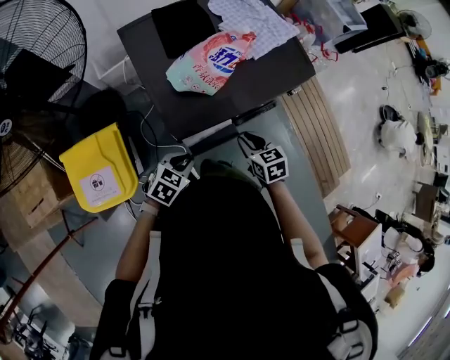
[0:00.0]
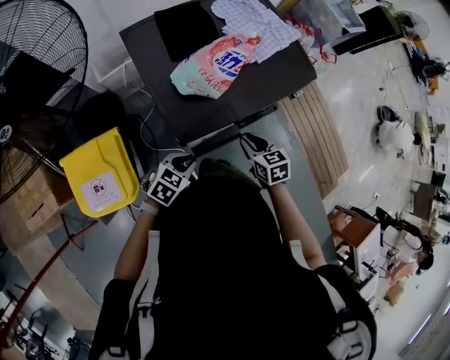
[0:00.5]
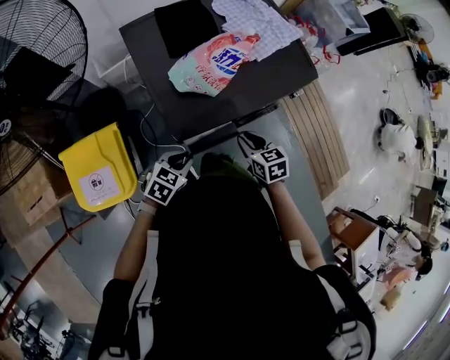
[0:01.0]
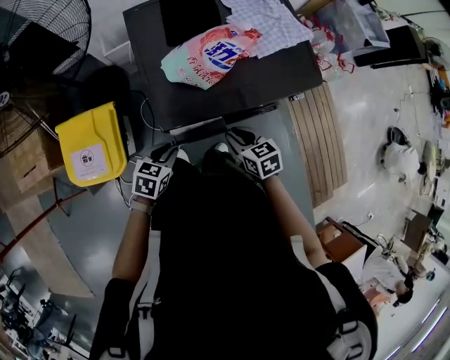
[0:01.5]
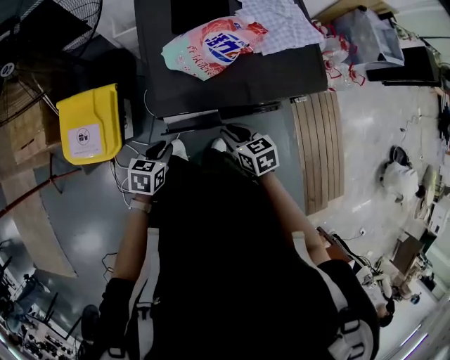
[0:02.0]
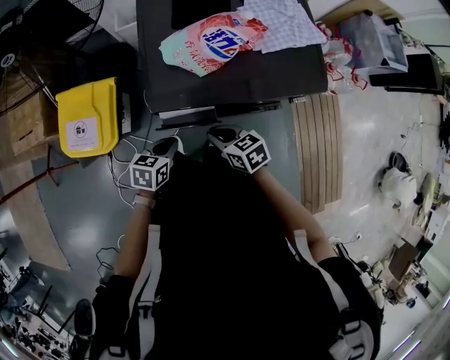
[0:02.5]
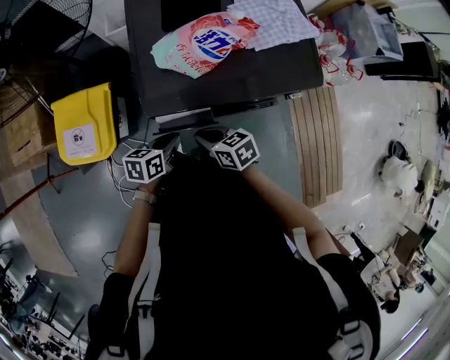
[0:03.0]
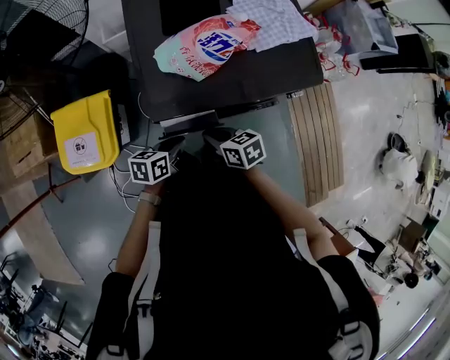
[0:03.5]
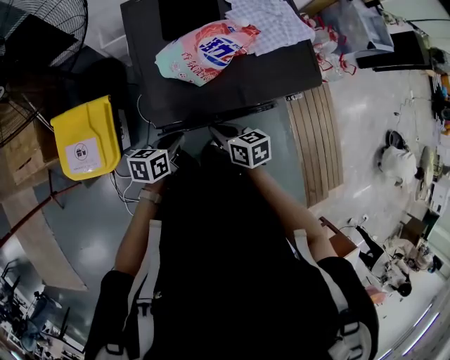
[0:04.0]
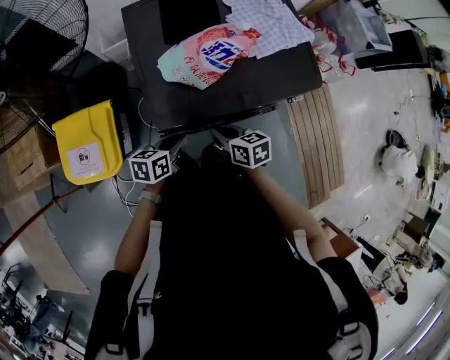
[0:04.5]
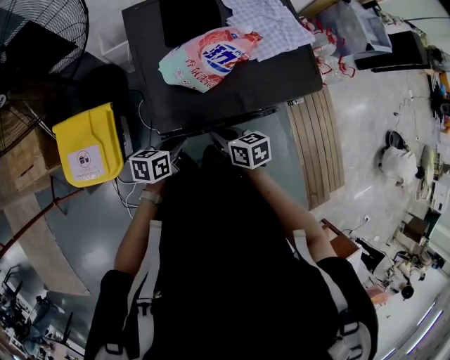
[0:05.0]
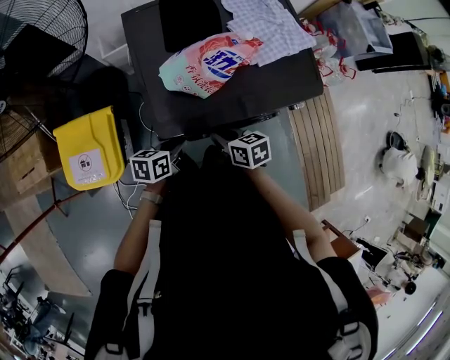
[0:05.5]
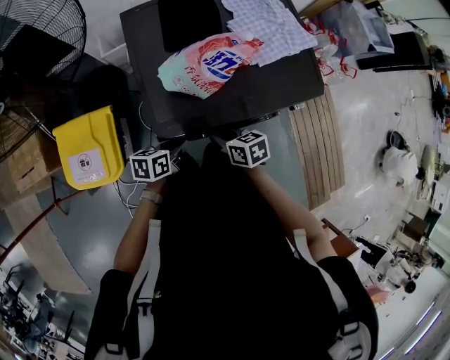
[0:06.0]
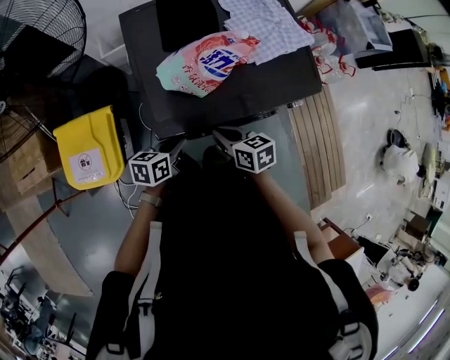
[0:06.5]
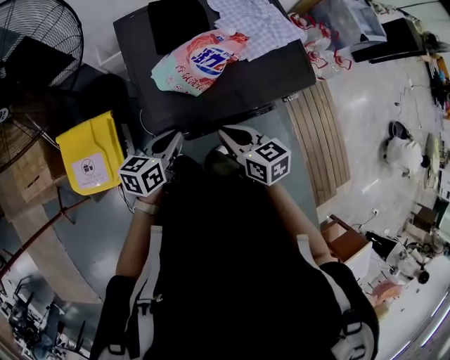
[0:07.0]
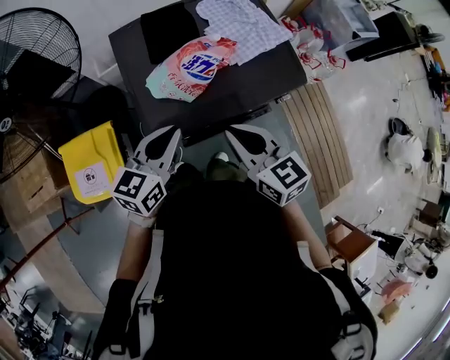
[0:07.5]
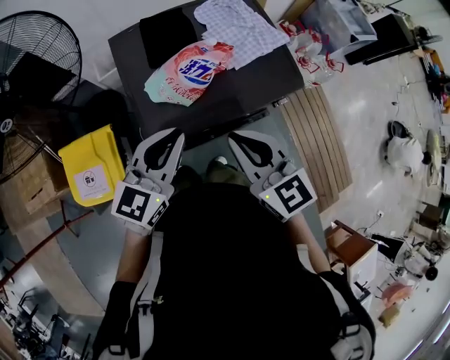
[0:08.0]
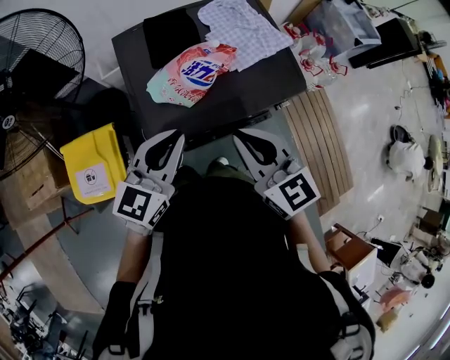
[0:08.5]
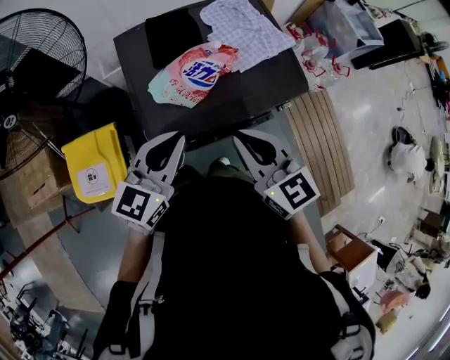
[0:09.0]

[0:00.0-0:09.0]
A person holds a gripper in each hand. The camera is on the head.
0:00.0 to 0:02.0: The left gripper swivels approximately 40 degrees. Meanwhile the right gripper changes its angle by some 20 degrees.
0:02.0 to 0:04.5: The left gripper heads forward, covering approximately 5 cm, and swivels roughly 20 degrees, while the right gripper shifts by approximately 5 cm.
0:04.5 to 0:07.0: Both grippers move upward, about 10 cm.
0:07.0 to 0:09.0: Both grippers move upward, approximately 15 cm. The left gripper swivels approximately 30 degrees; the right gripper swivels some 30 degrees.

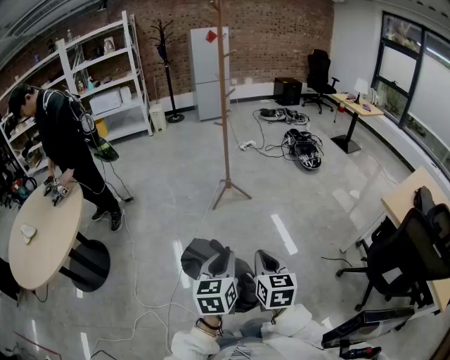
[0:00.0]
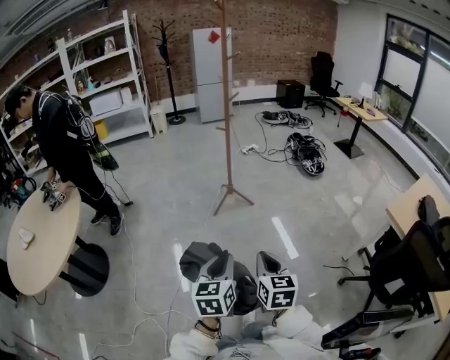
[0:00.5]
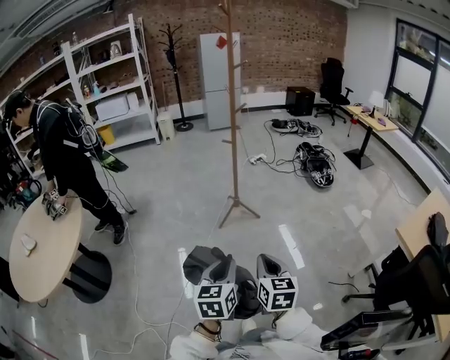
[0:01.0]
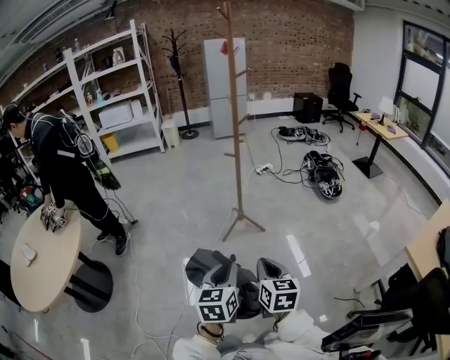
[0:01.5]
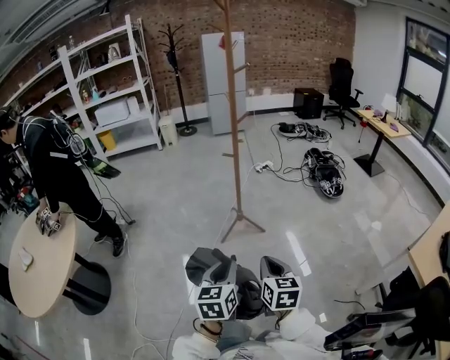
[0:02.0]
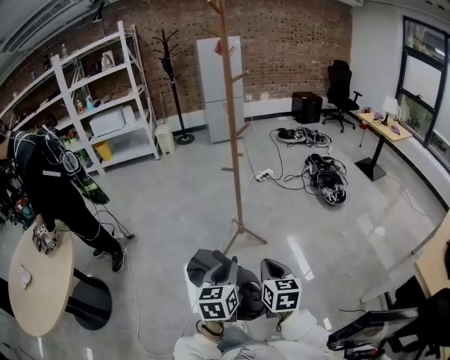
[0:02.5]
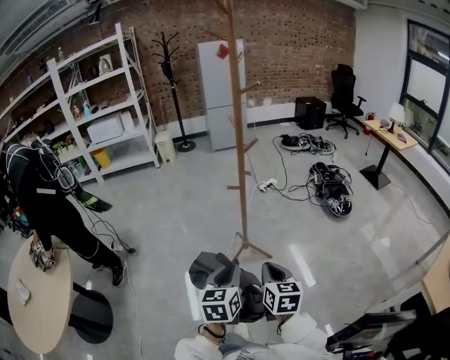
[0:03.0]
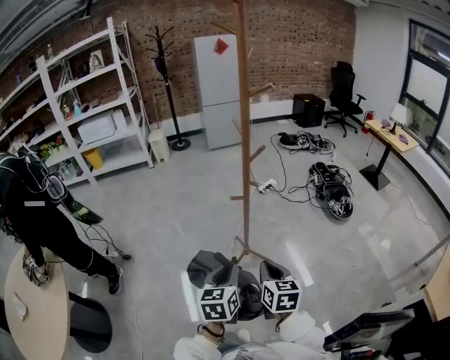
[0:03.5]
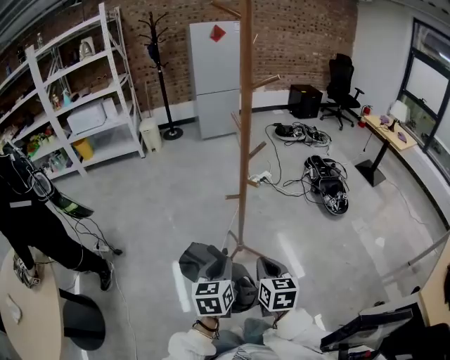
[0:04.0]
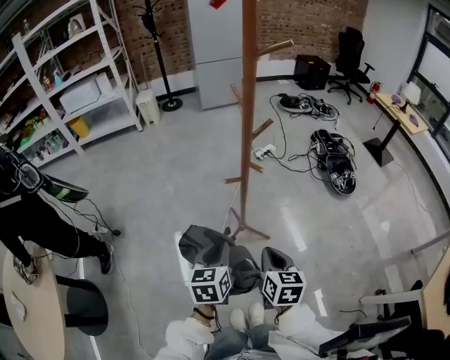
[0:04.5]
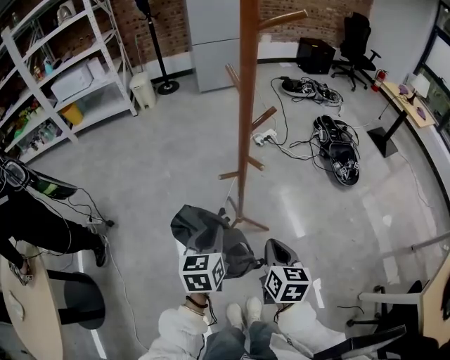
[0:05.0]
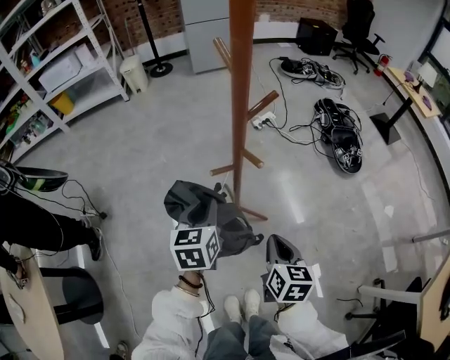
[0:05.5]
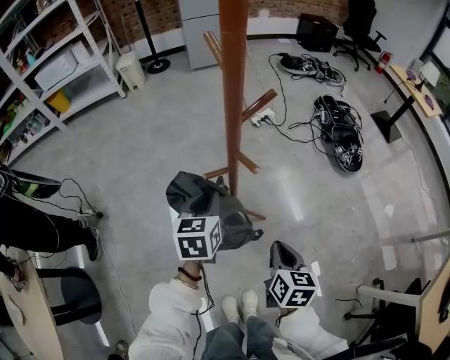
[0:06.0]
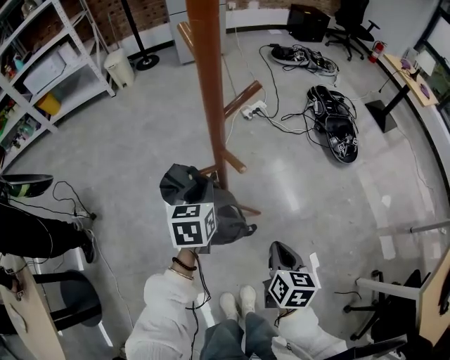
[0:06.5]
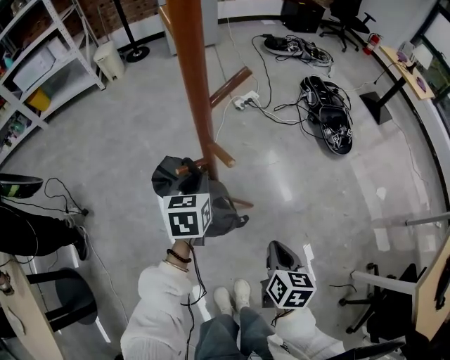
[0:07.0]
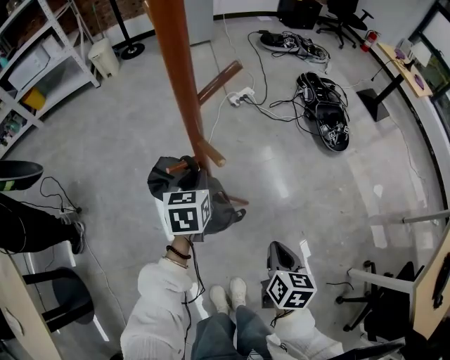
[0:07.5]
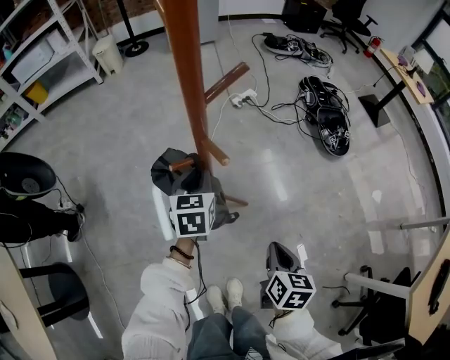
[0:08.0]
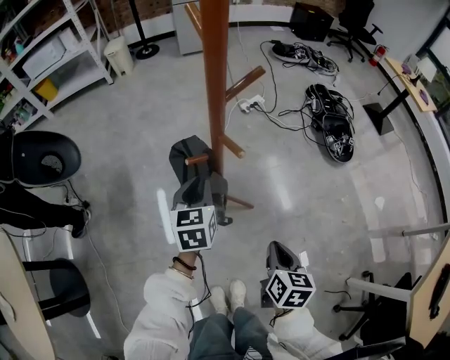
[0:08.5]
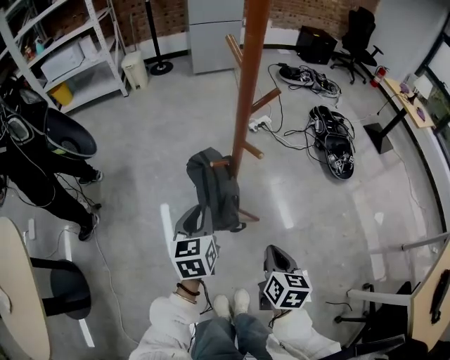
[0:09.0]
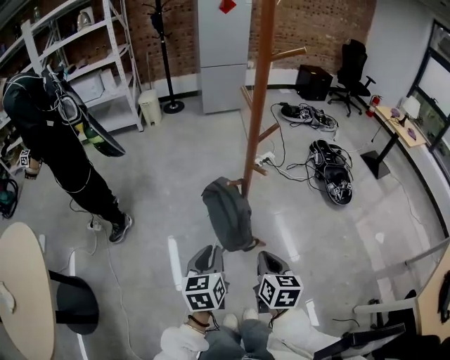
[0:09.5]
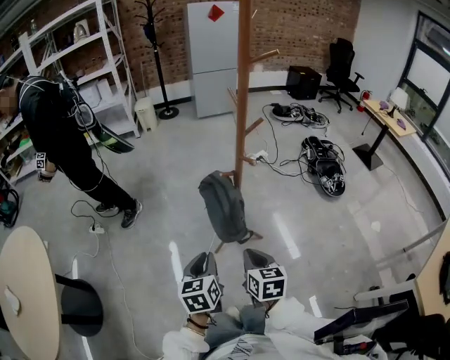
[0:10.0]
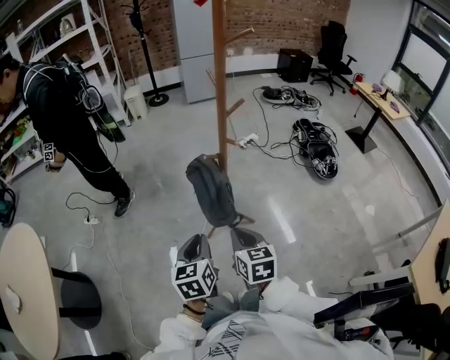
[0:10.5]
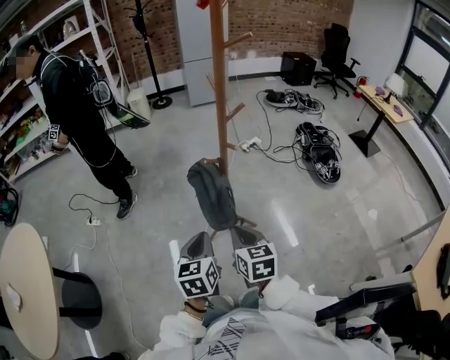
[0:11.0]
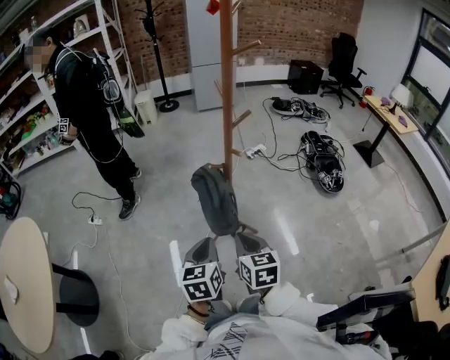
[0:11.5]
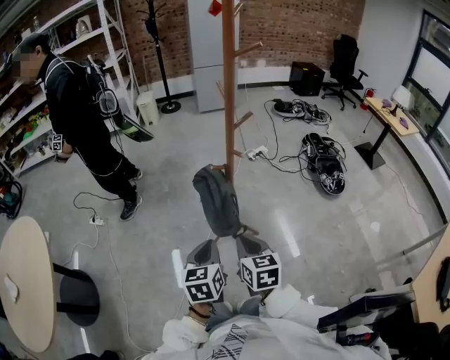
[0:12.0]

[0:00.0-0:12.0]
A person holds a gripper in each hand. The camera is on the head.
0:00.0 to 0:02.0: Both grippers move forward, roughly 30 cm.
0:02.0 to 0:04.0: Both grippers travel together forward, some 30 cm.
0:04.0 to 0:06.0: The right gripper travels downward, forward and to the right by approximately 20 cm; the left gripper shifts roughly 25 cm forward.
0:06.0 to 0:08.0: The right gripper goes about 5 cm to the right, while the left gripper travels downward and forward by some 10 cm.
0:08.0 to 0:10.0: The left gripper is displaced backward by some 35 cm, while the right gripper is displaced to the left, upward and backward by some 25 cm, and swivels roughly 20 degrees.
0:10.0 to 0:12.0: The left gripper moves to the right, about 5 cm.

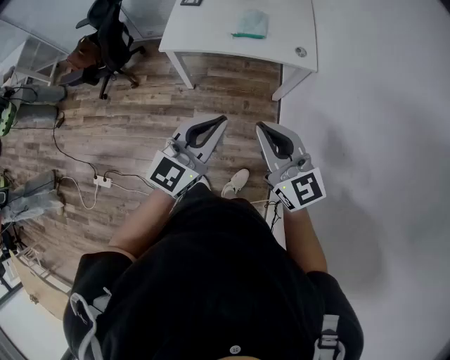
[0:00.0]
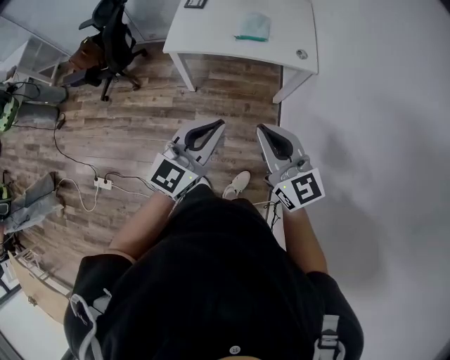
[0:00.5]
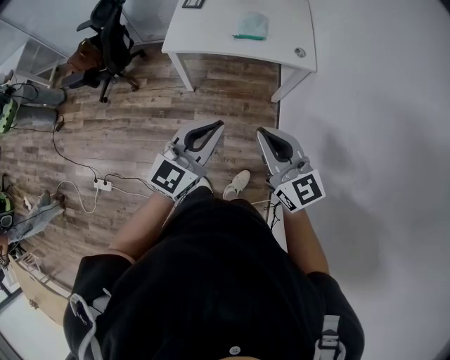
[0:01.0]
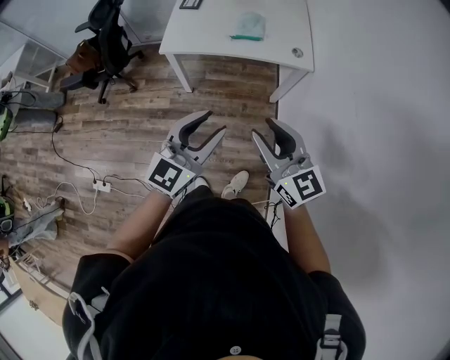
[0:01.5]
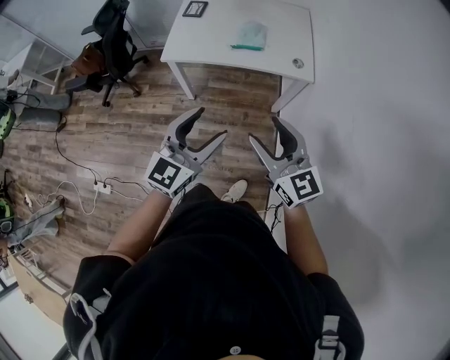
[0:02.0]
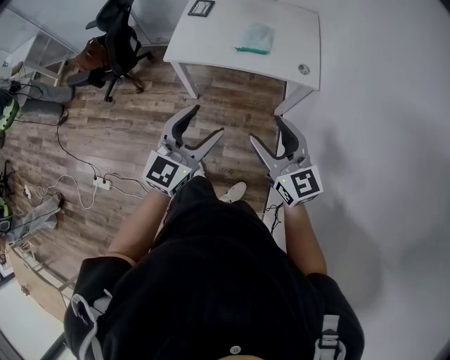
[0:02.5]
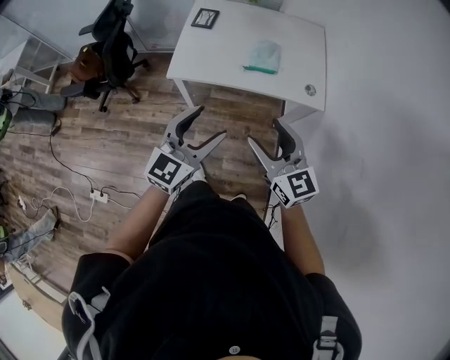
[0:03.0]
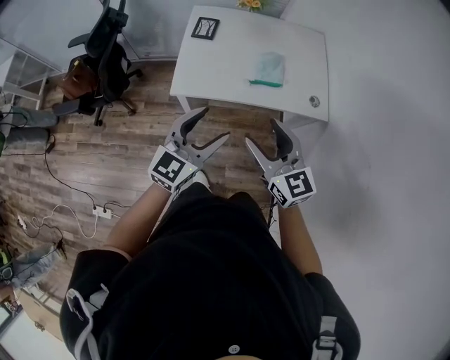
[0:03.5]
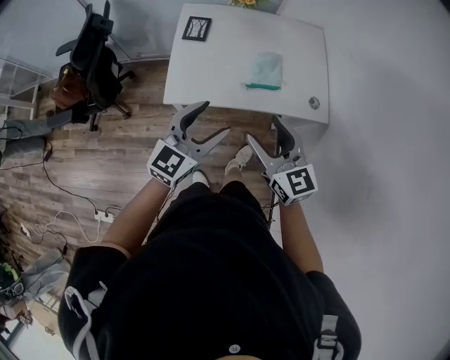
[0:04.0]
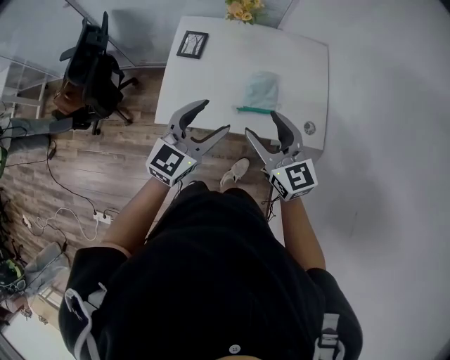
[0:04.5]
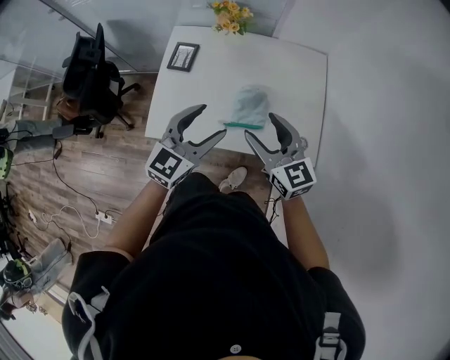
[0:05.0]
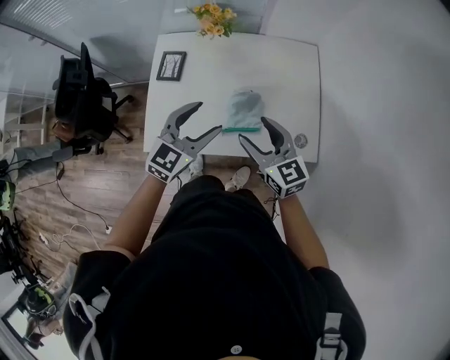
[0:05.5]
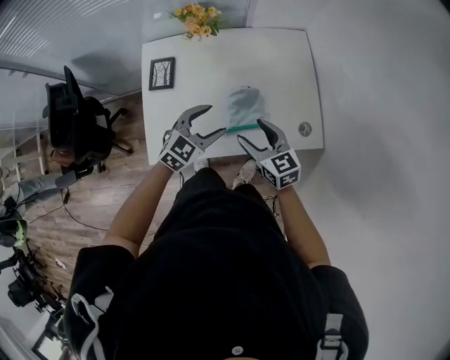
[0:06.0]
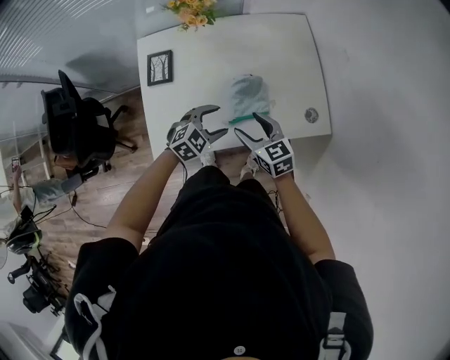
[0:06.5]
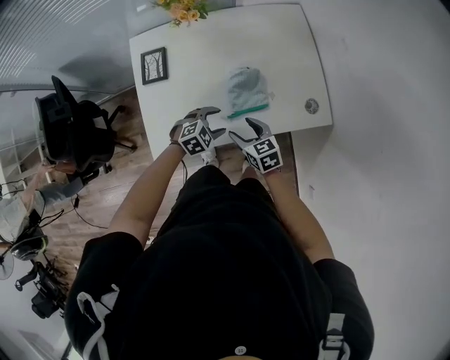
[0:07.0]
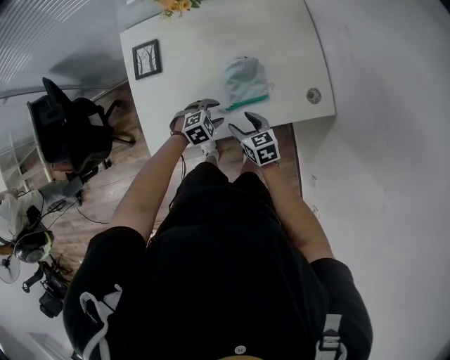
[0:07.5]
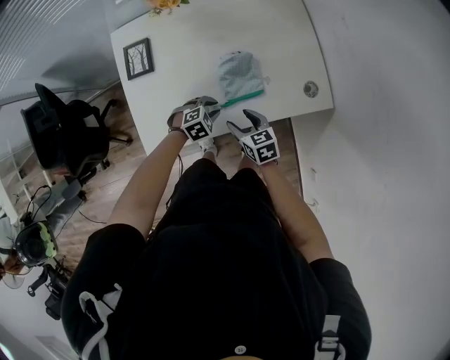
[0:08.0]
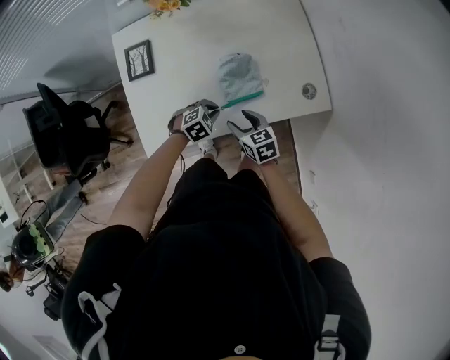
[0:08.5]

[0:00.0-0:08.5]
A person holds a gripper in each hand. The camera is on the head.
0:00.0 to 0:02.0: The left gripper opens its fingers; the right gripper opens up.
0:02.0 to 0:04.0: Both grippers move forward and to the left, roughly 30 cm.
0:04.0 to 0:06.5: Both grippers move forward and downward, approximately 30 cm. The right gripper swivels some 20 degrees. Meanwhile the left gripper tilts its fingers approximately 40 degrees downward.
0:06.5 to 0:08.5: The grippers both shift downward by roughly 15 cm. The left gripper changes its angle by approximately 20 degrees, and closes up.
